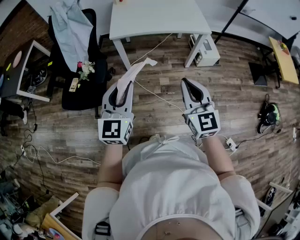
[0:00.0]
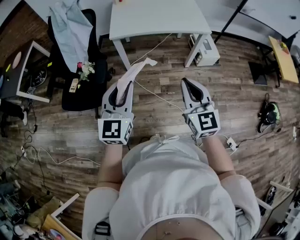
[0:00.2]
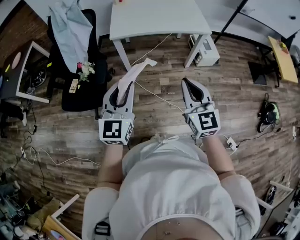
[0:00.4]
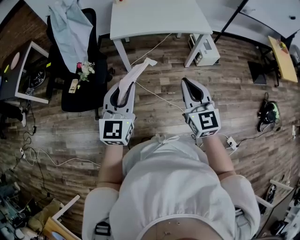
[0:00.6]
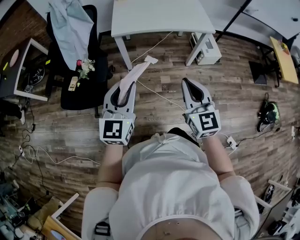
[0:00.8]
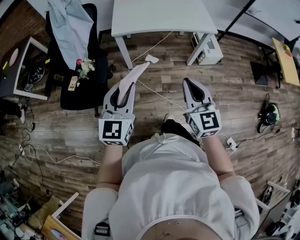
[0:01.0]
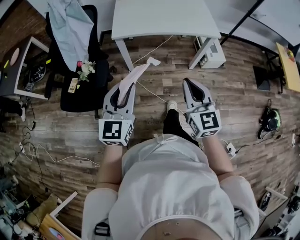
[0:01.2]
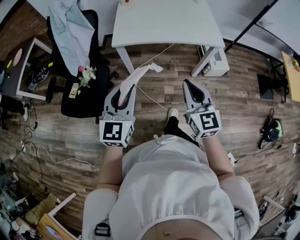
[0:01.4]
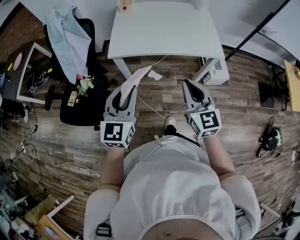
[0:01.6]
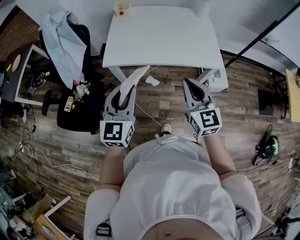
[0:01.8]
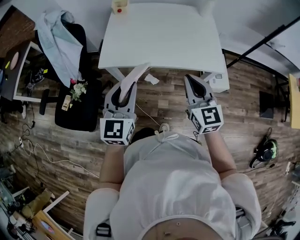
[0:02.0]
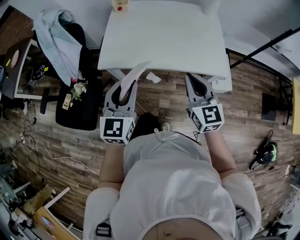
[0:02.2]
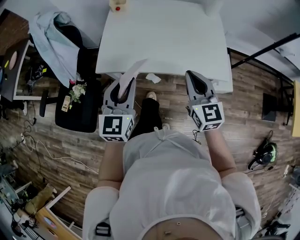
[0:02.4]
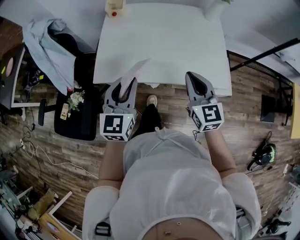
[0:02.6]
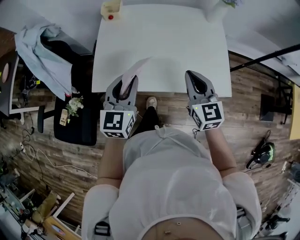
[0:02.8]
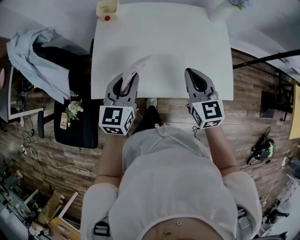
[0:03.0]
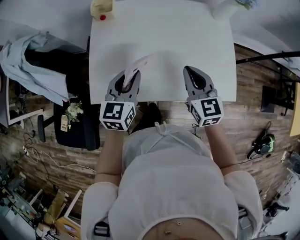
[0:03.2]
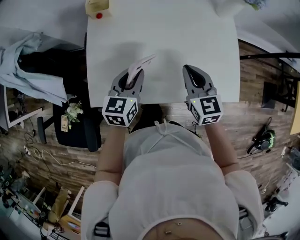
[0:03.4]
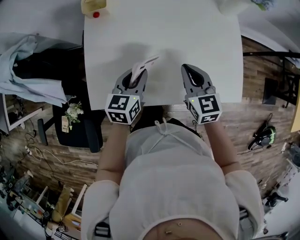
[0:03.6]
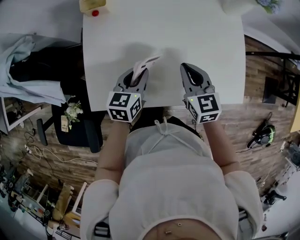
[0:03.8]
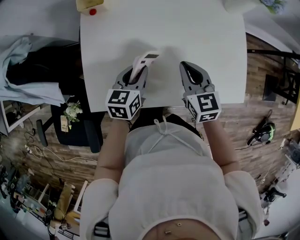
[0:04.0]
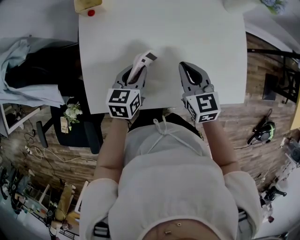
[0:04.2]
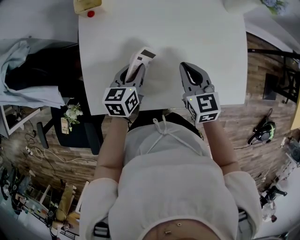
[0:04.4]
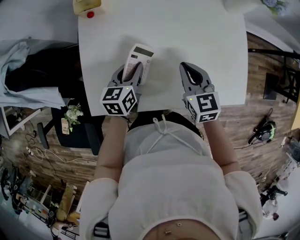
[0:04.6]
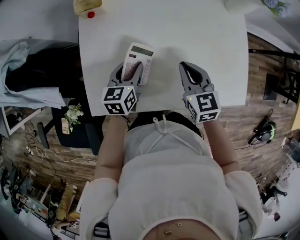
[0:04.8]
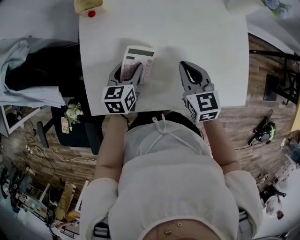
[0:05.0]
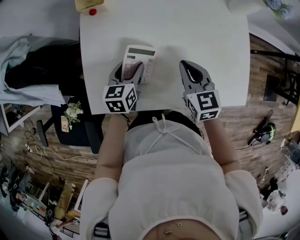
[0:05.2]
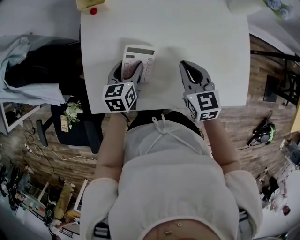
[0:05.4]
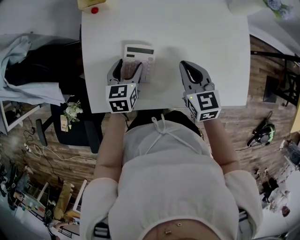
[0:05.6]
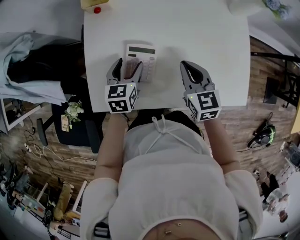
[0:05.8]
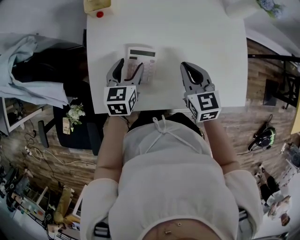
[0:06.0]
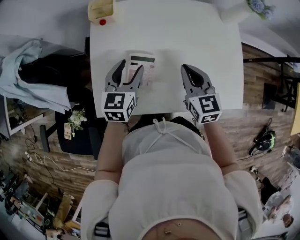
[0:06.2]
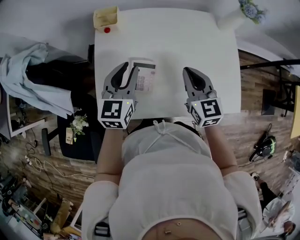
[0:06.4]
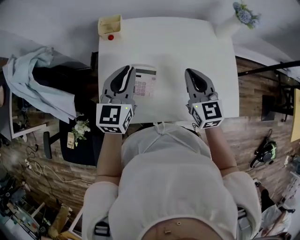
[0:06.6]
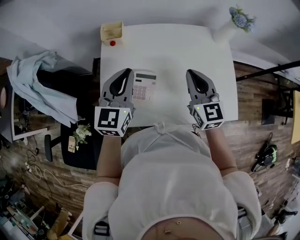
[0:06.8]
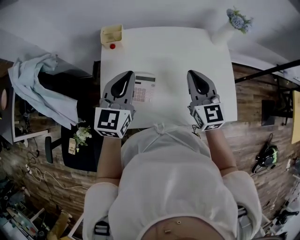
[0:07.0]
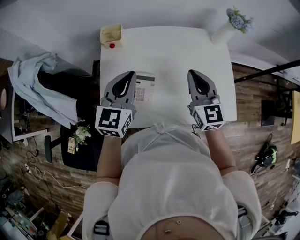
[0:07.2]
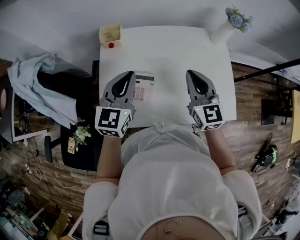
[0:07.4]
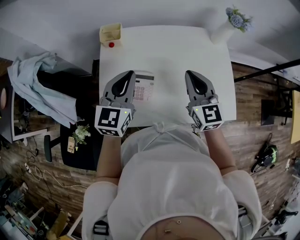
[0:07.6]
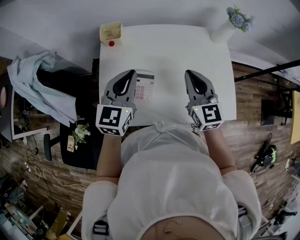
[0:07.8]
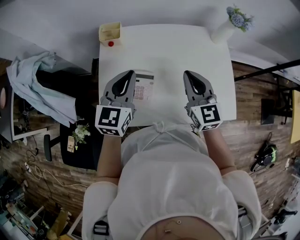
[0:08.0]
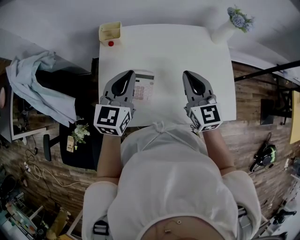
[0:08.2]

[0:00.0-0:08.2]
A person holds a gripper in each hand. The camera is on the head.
0:00.0 to 0:01.6: The two grippers go some 25 cm forward.
0:01.6 to 0:03.2: The two grippers travel together, forward, approximately 40 cm. The left gripper turns by approximately 20 degrees.
0:03.2 to 0:05.0: The two grippers go about 15 cm downward and forward. The left gripper opens up.
0:05.0 to 0:06.6: The right gripper shifts roughly 10 cm upward, while the left gripper shifts roughly 20 cm upward, swivels about 30 degrees, and closes.
0:06.6 to 0:08.2: The grippers stay close to where they were, moving slightly.

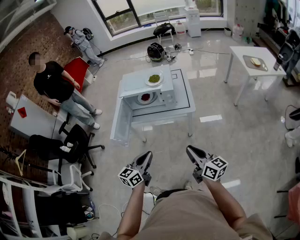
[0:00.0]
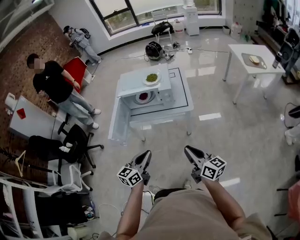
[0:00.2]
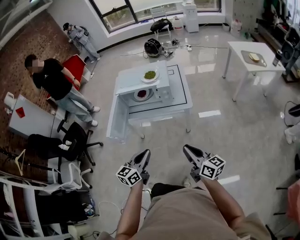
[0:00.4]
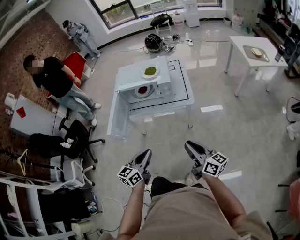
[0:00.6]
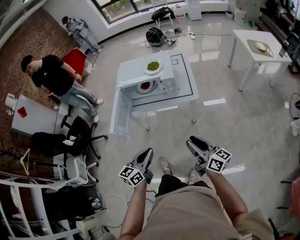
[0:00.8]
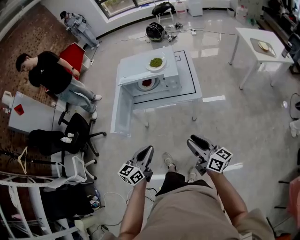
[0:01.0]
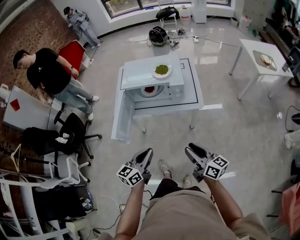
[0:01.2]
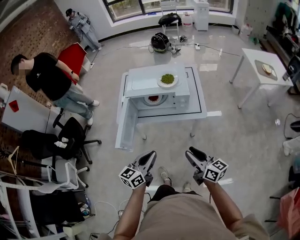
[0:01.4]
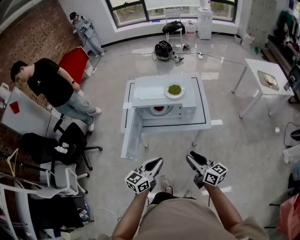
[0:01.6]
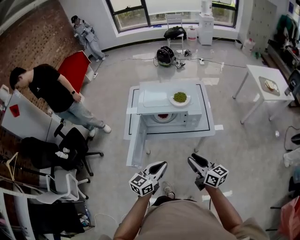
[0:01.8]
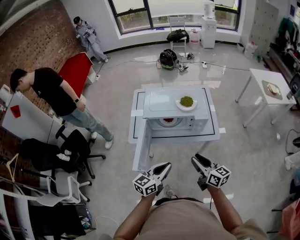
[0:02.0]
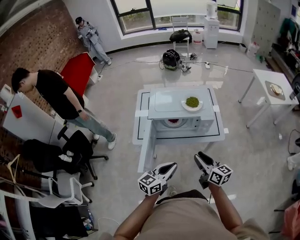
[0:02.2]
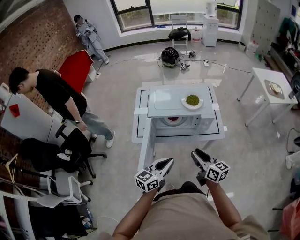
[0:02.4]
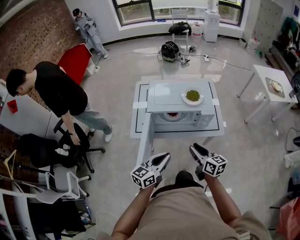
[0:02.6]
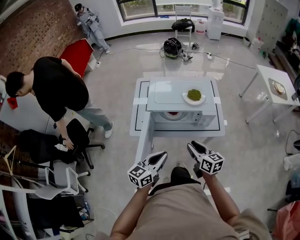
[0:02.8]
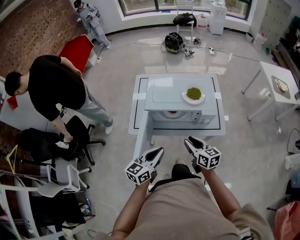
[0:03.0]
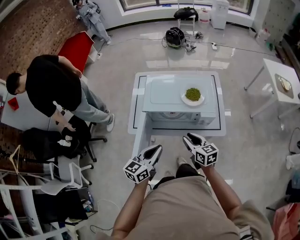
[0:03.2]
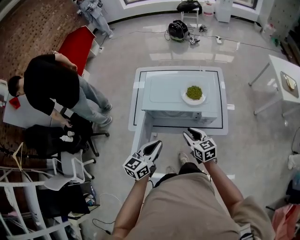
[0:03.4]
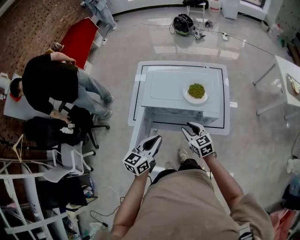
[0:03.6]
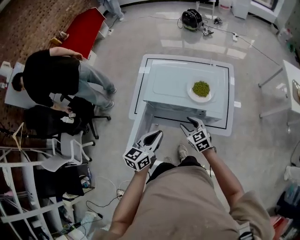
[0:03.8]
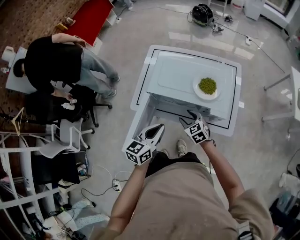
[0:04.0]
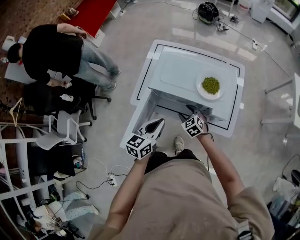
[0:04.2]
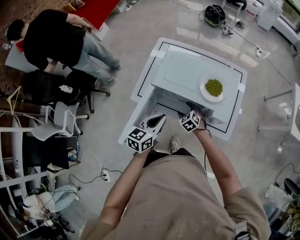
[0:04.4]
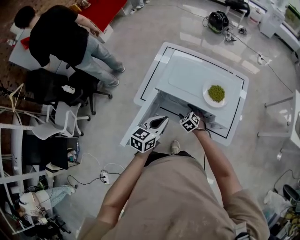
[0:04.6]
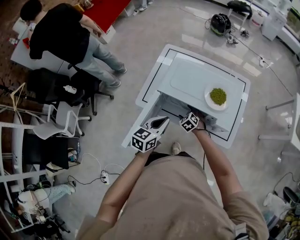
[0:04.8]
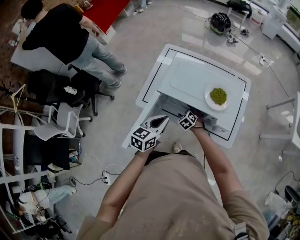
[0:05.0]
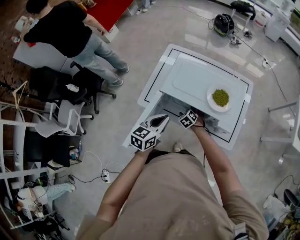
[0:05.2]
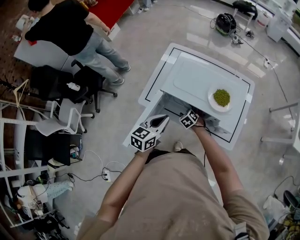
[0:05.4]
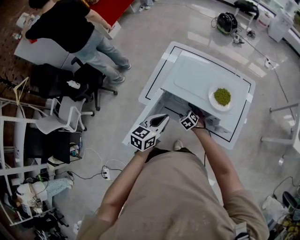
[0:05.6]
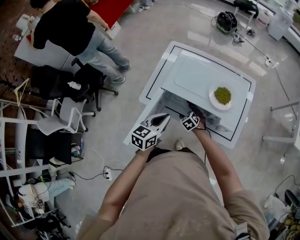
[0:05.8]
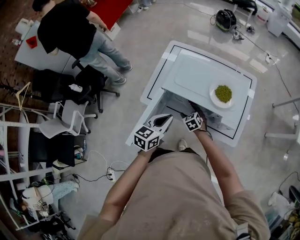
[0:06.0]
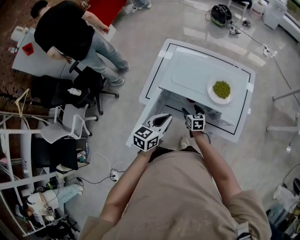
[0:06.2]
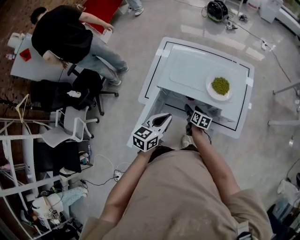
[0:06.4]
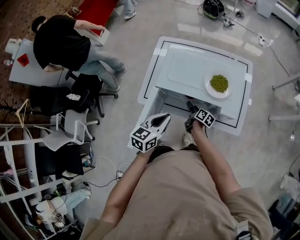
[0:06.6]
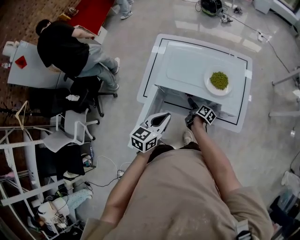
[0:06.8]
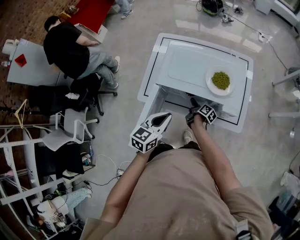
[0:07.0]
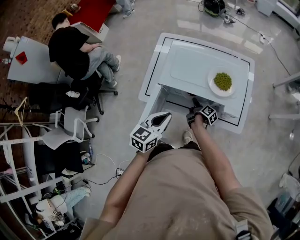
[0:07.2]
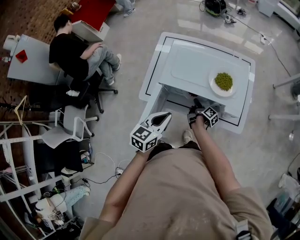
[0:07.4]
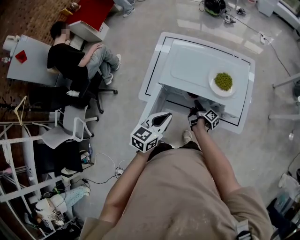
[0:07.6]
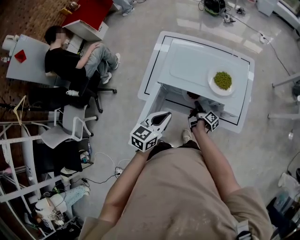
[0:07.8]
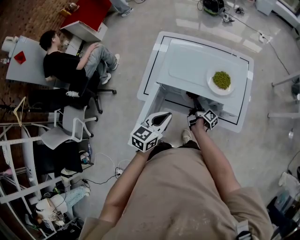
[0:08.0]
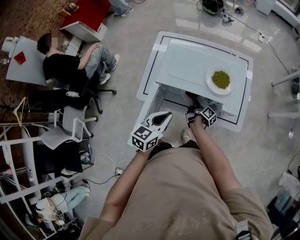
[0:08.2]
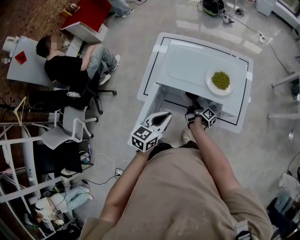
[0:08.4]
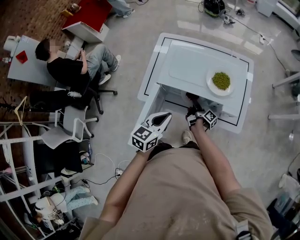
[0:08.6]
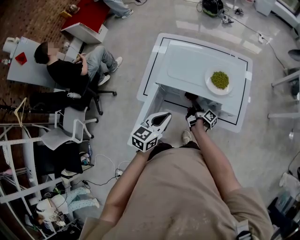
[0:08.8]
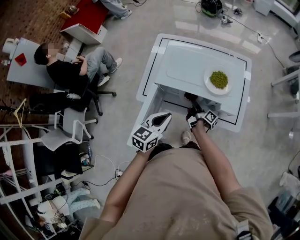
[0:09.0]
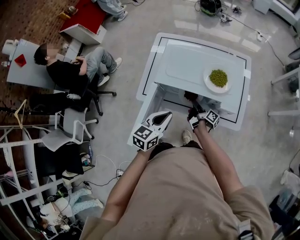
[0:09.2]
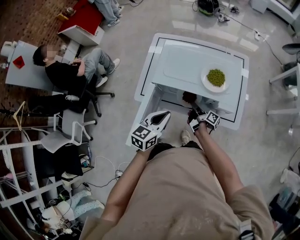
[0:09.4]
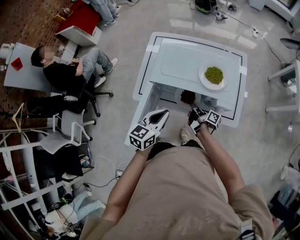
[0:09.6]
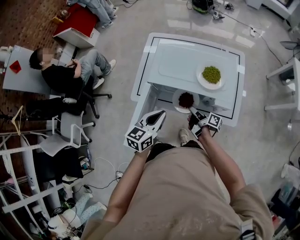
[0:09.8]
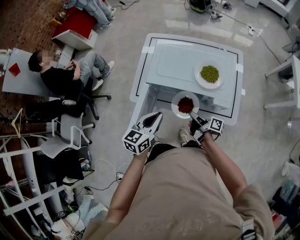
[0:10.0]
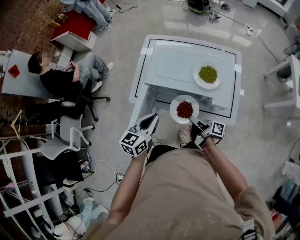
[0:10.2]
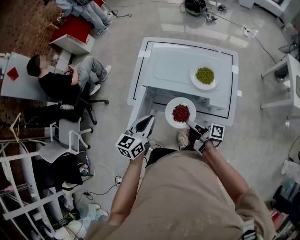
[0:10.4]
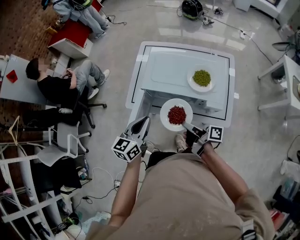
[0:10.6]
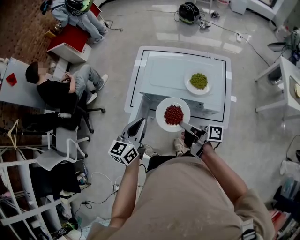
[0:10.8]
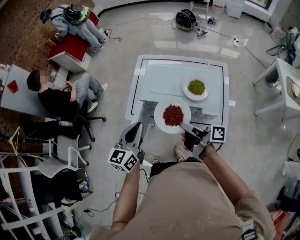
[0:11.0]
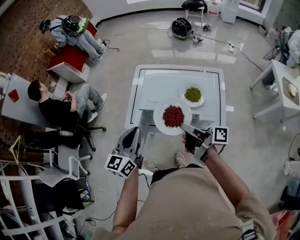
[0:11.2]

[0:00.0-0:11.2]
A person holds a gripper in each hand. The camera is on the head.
0:00.0 to 0:01.6: The two grippers go approximately 15 cm forward and to the left.
0:01.6 to 0:03.2: Both grippers travel together forward and to the left, about 20 cm.
0:03.2 to 0:04.8: The left gripper goes approximately 15 cm forward and downward. Meanwhile the right gripper shifts about 30 cm downward and forward, rolls counterclockwise, seen from behind, by approximately 50 degrees, and opens.
0:04.8 to 0:06.4: The right gripper twists about 70 degrees clockwise, seen from behind.
0:06.4 to 0:08.0: The right gripper rotates around the line of its fingers by about 40 degrees, clockwise from behind, and closes its fingers.
0:08.0 to 0:09.6: The right gripper heads upward, covering approximately 5 cm, and closes up.
0:09.6 to 0:11.2: The left gripper travels upward by about 15 cm, and rotates some 20 degrees. Meanwhile the right gripper travels upward by approximately 30 cm, and rotates about 20 degrees.

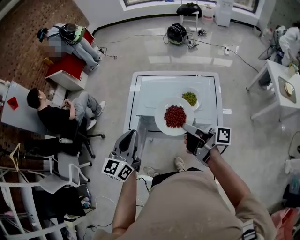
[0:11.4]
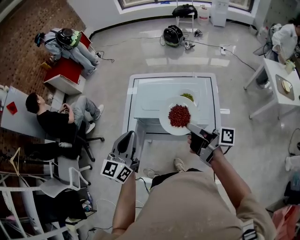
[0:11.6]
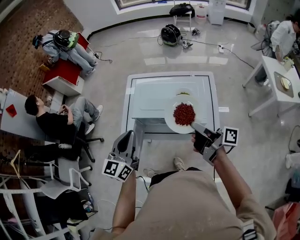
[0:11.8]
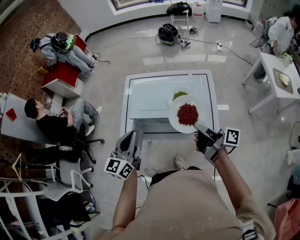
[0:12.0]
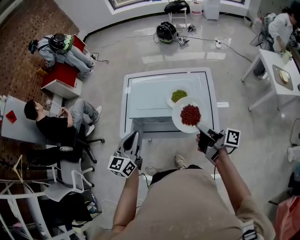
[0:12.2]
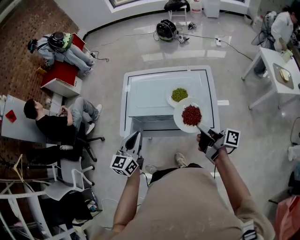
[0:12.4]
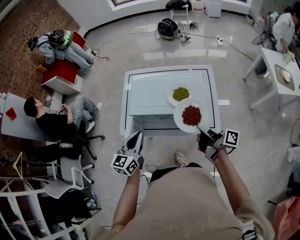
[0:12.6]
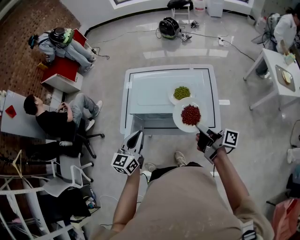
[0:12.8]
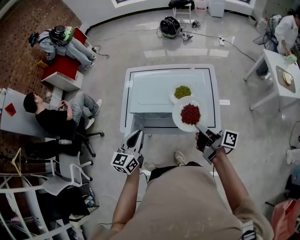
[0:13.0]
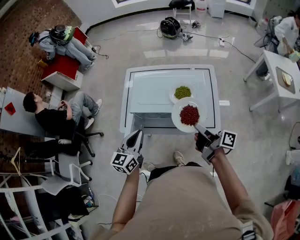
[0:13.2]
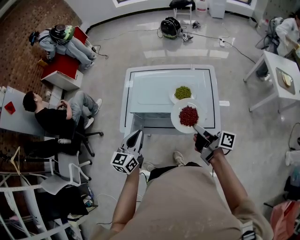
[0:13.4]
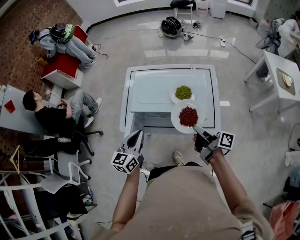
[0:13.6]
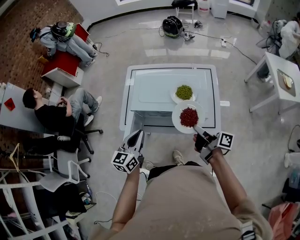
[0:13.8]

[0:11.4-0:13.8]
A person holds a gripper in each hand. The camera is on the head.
0:11.4 to 0:12.6: The left gripper moves downward, about 10 cm, while the right gripper heads to the right and downward, covering some 15 cm.
0:12.6 to 0:13.8: The grippers move only a little.

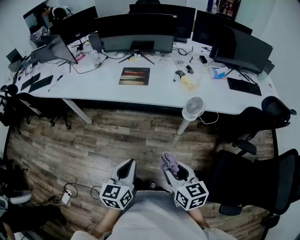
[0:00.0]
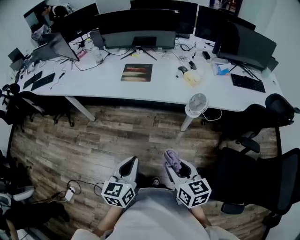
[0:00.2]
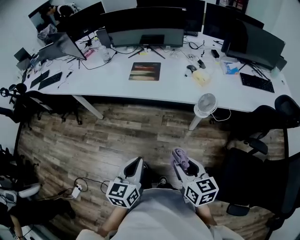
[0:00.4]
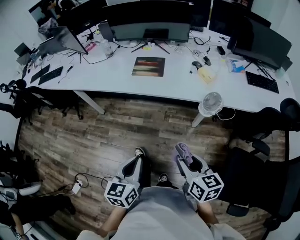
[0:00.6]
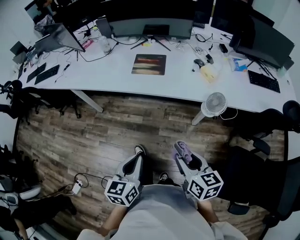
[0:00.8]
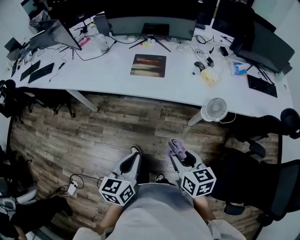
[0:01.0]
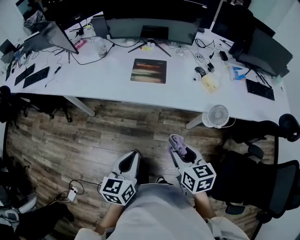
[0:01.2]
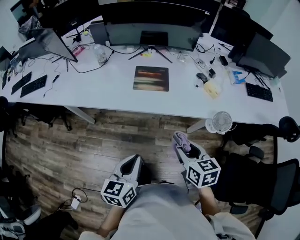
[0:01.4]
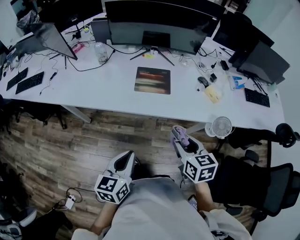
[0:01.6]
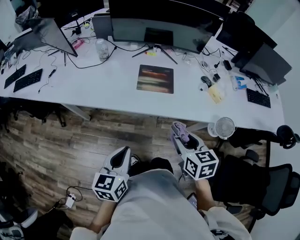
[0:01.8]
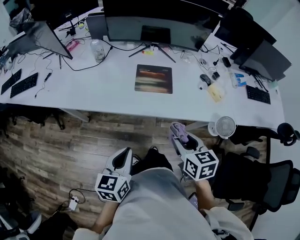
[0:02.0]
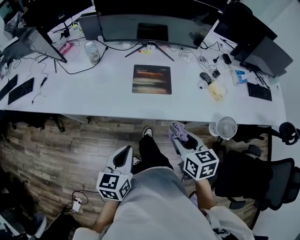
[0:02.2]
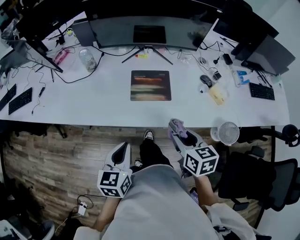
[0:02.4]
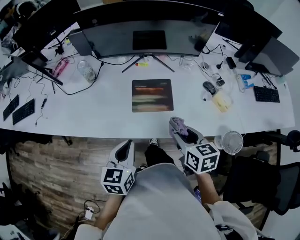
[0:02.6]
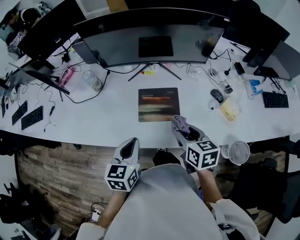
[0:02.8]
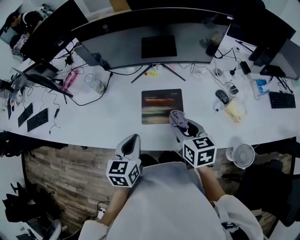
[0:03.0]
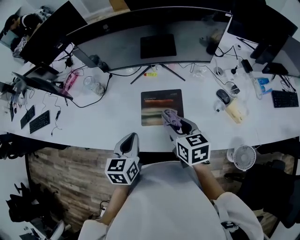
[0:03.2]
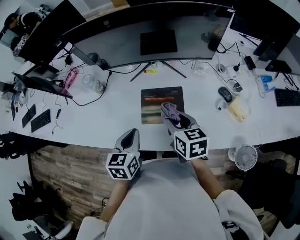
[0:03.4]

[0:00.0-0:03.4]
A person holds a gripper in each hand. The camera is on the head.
0:00.0 to 0:01.6: Both grippers travel together forward and to the left, some 35 cm.
0:01.6 to 0:03.4: Both grippers move forward, roughly 35 cm.
